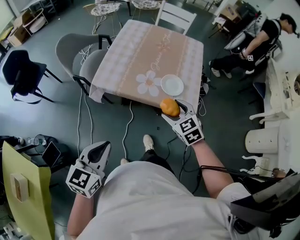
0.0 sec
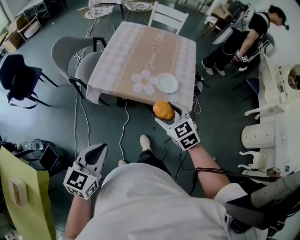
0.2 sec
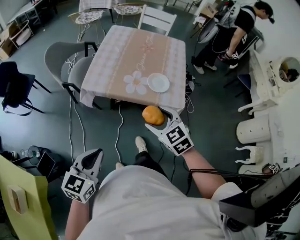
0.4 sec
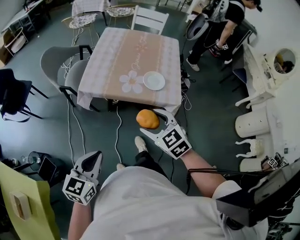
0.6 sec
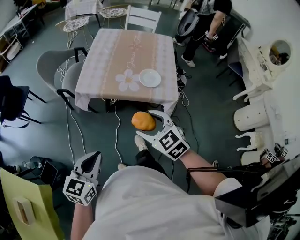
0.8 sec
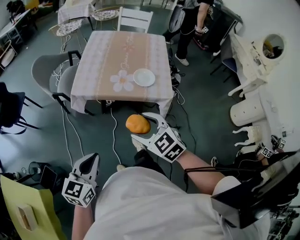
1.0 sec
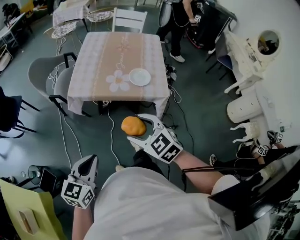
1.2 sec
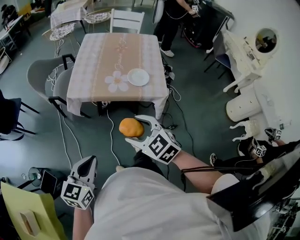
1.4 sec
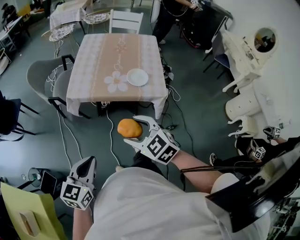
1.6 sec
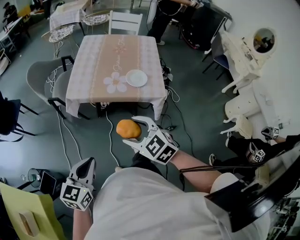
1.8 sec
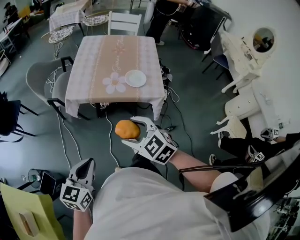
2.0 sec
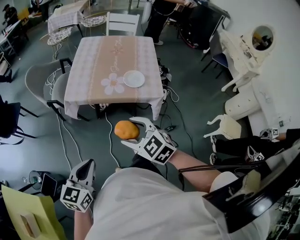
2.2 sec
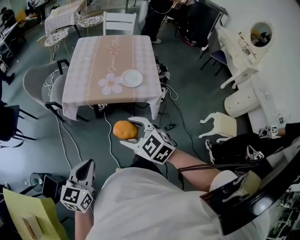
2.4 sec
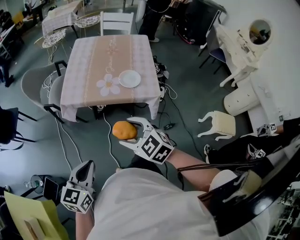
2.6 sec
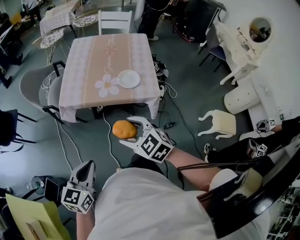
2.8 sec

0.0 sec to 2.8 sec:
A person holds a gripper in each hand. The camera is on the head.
0.0 sec to 1.4 sec: The left gripper is displaced backward by approximately 10 cm. The right gripper travels backward and to the left by approximately 20 cm.
1.4 sec to 2.8 sec: The grippers stay close to where they were, moving slightly.

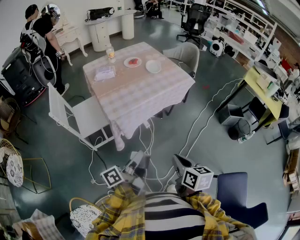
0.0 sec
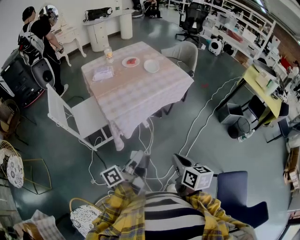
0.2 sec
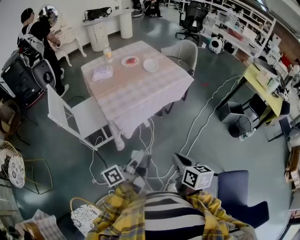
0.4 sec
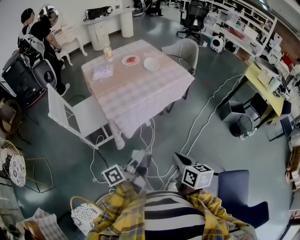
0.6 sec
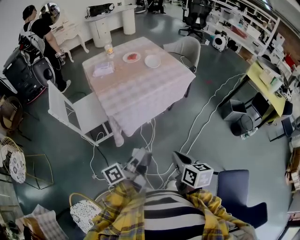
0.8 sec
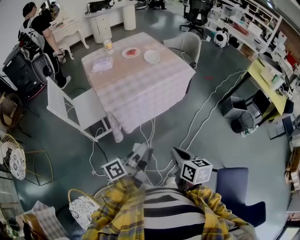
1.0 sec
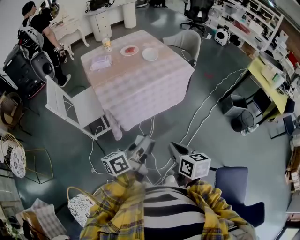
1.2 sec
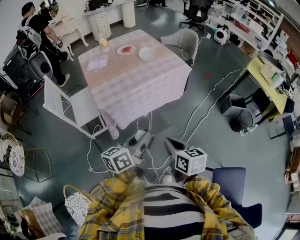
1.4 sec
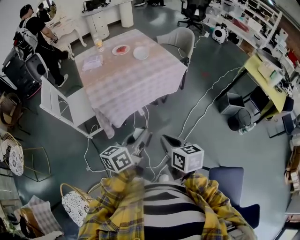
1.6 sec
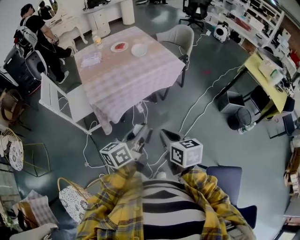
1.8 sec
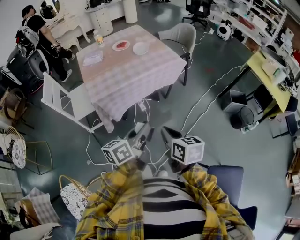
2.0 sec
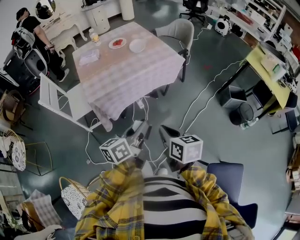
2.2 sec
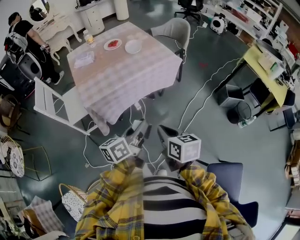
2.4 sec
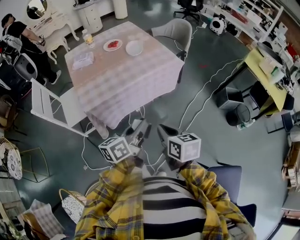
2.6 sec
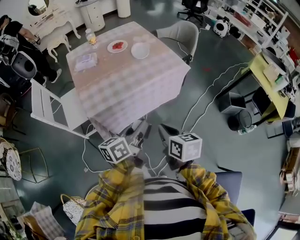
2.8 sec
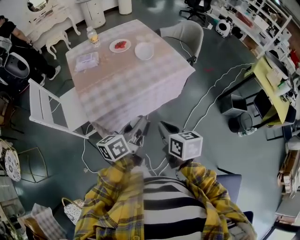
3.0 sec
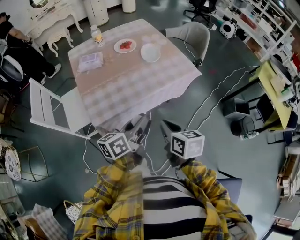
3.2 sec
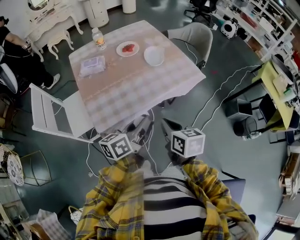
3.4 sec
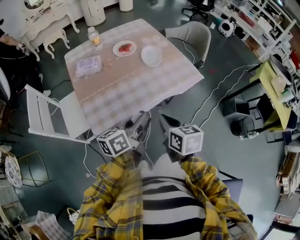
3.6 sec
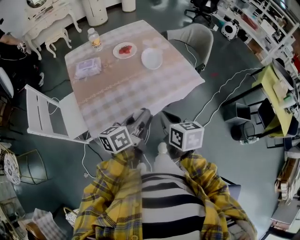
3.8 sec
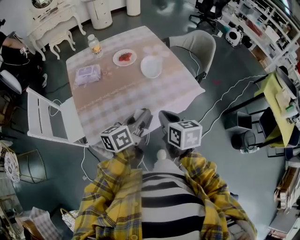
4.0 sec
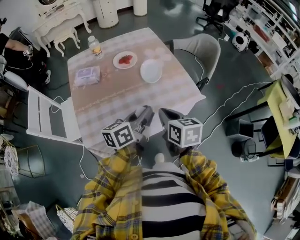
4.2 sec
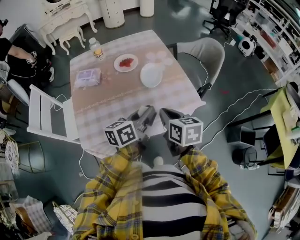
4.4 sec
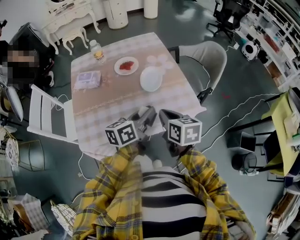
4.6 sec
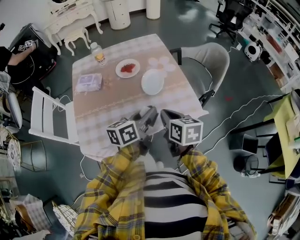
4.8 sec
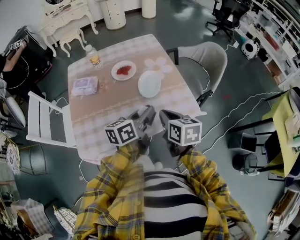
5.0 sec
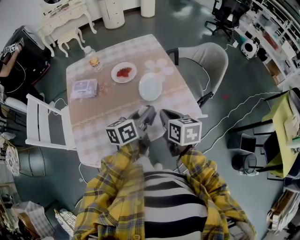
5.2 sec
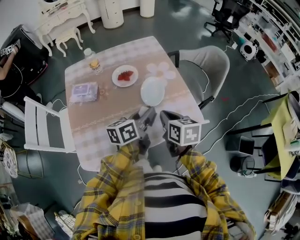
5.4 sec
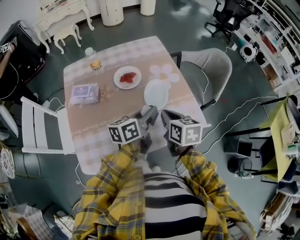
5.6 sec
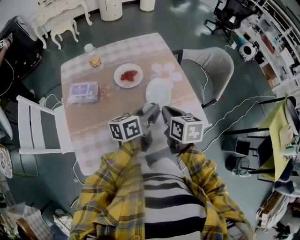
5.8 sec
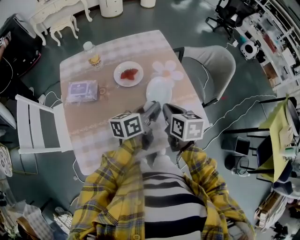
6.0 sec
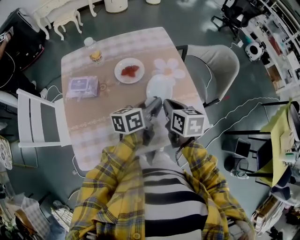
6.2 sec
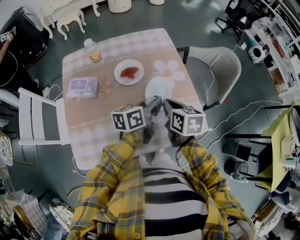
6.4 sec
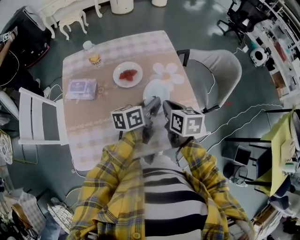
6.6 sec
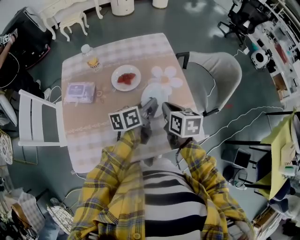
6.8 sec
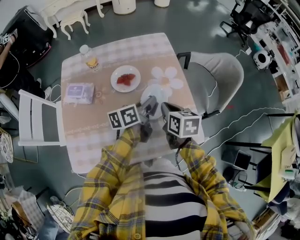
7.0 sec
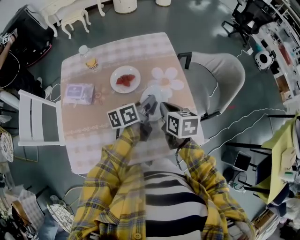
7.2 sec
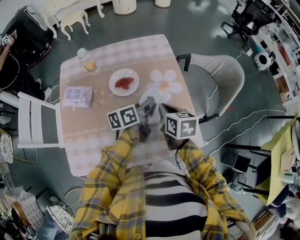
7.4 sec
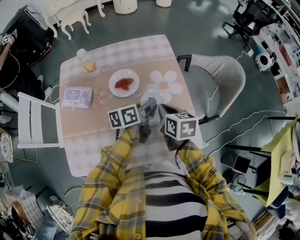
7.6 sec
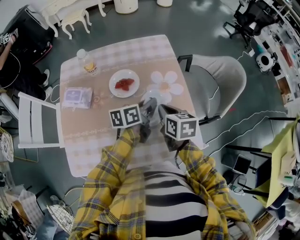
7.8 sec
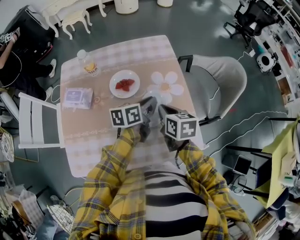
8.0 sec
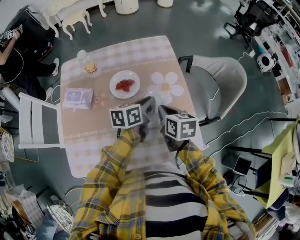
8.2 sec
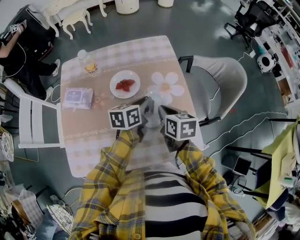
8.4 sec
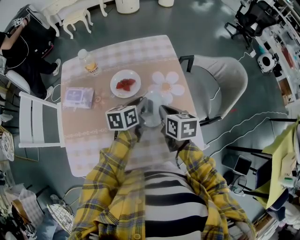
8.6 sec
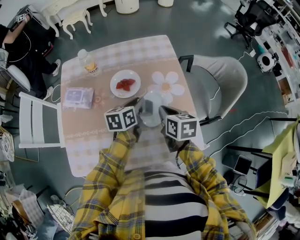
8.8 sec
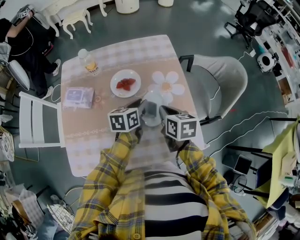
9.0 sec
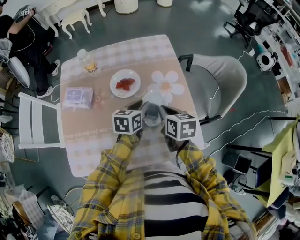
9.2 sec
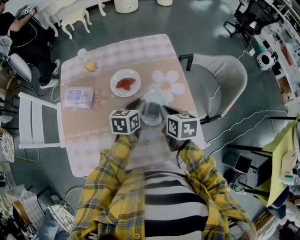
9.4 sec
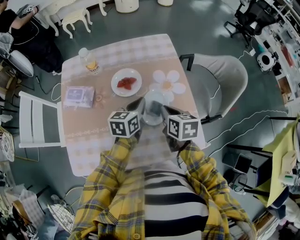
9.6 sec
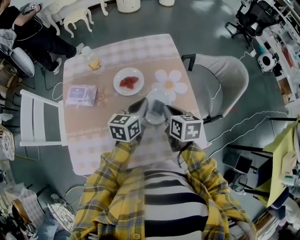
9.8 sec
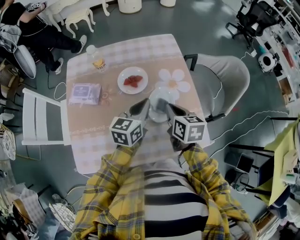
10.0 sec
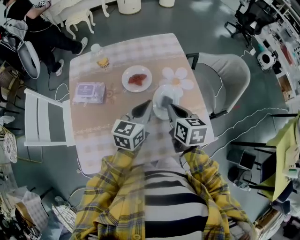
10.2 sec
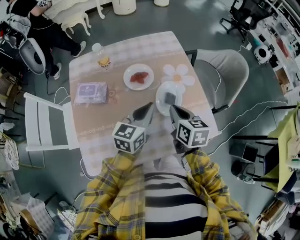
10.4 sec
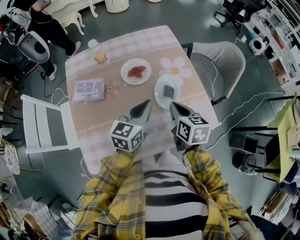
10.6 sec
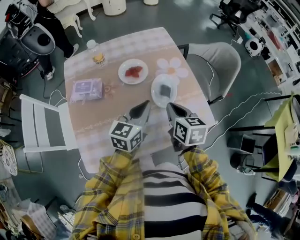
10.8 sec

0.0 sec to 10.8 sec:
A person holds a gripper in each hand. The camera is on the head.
0.0 sec to 1.6 sec: The left gripper heads to the right, covering roughly 15 cm, and turns by roughly 30 degrees, while the right gripper moves to the right, about 5 cm.
1.6 sec to 3.0 sec: The two grippers go approximately 15 cm forward.
3.0 sec to 4.6 sec: Both grippers travel together forward, roughly 25 cm.
4.6 sec to 6.2 sec: The two grippers go about 15 cm forward.
6.2 sec to 7.8 sec: The grippers both shift forward by some 10 cm.
7.8 sec to 9.2 sec: The left gripper moves some 5 cm, and turns by roughly 30 degrees.
9.2 sec to 10.8 sec: The right gripper moves backward, about 10 cm. The left gripper moves backward and upward, about 15 cm, turns by roughly 30 degrees, and closes.

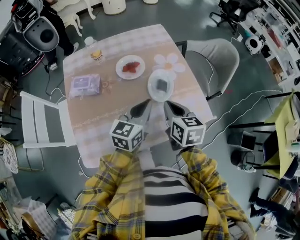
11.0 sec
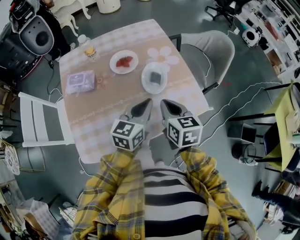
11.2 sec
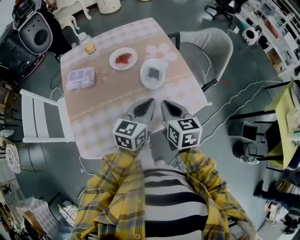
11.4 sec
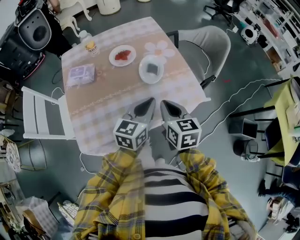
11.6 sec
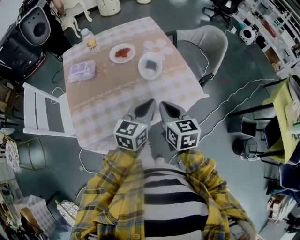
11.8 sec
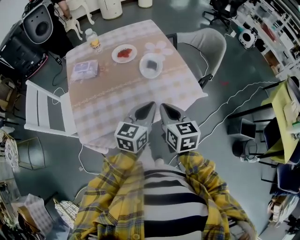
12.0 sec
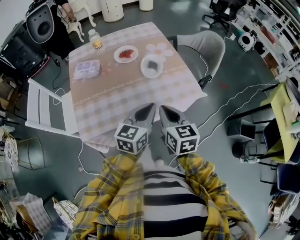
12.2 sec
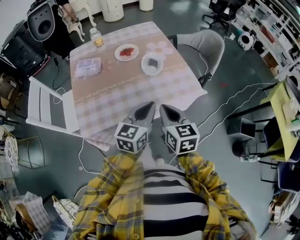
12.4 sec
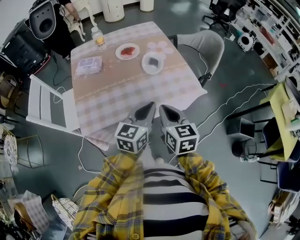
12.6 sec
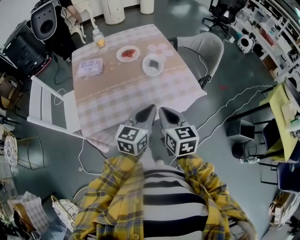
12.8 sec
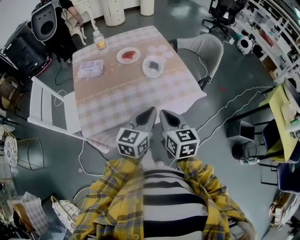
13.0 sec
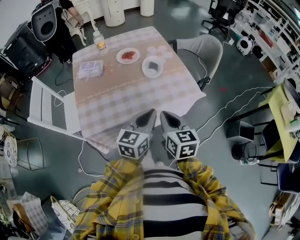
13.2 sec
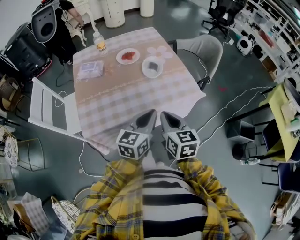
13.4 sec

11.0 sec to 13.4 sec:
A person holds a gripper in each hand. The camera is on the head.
11.0 sec to 12.2 sec: The left gripper heads backward and to the right, covering about 15 cm. The right gripper travels backward by roughly 15 cm.
12.2 sec to 13.4 sec: The grippers make only small movements.

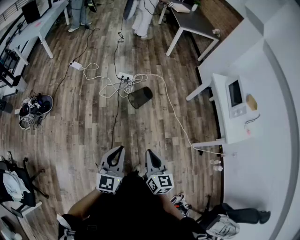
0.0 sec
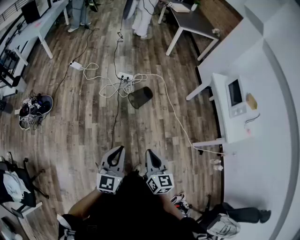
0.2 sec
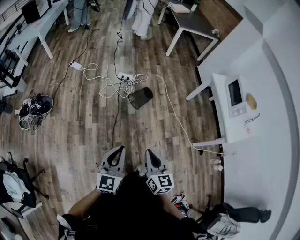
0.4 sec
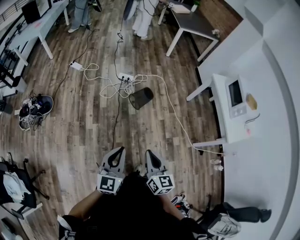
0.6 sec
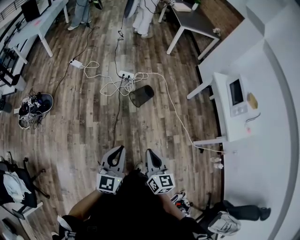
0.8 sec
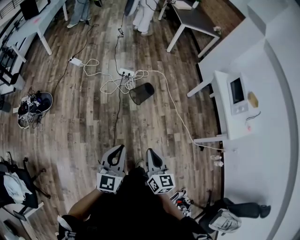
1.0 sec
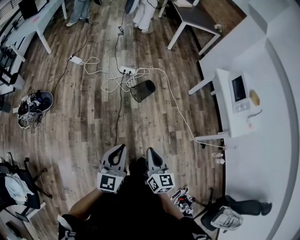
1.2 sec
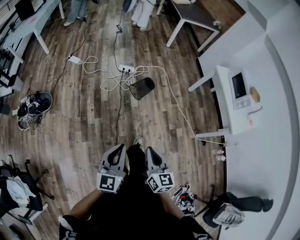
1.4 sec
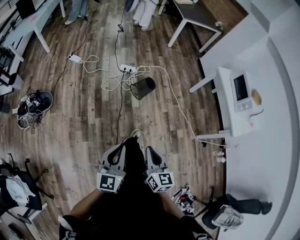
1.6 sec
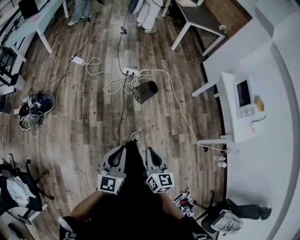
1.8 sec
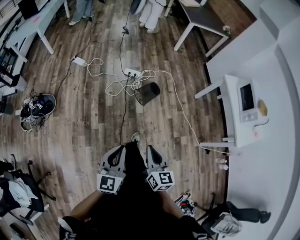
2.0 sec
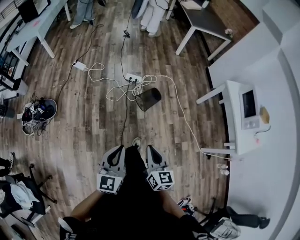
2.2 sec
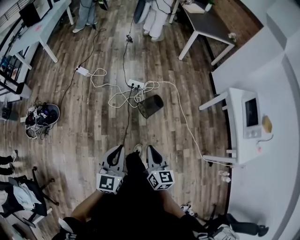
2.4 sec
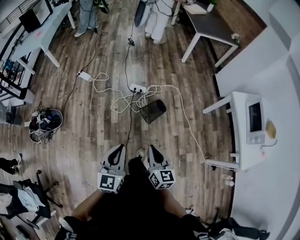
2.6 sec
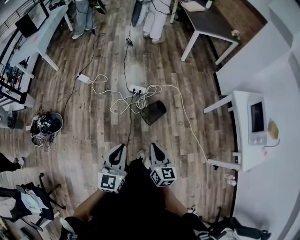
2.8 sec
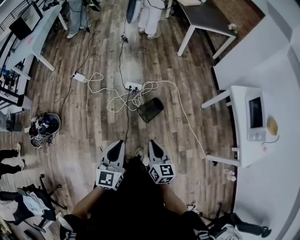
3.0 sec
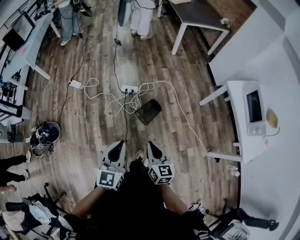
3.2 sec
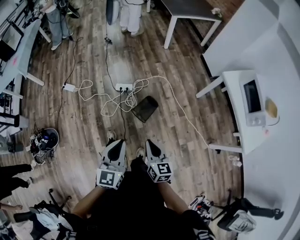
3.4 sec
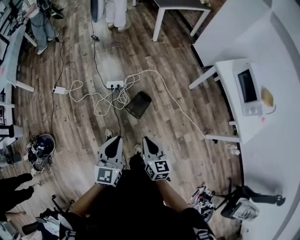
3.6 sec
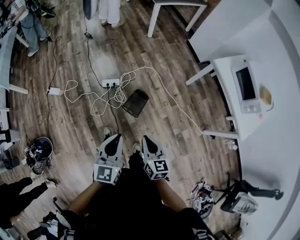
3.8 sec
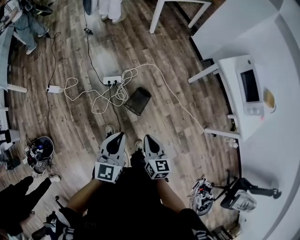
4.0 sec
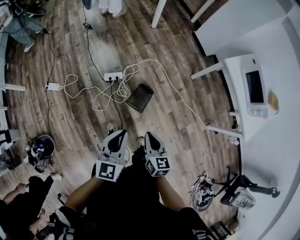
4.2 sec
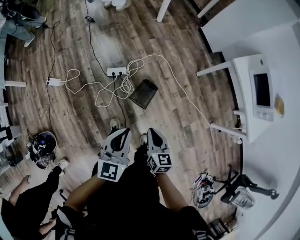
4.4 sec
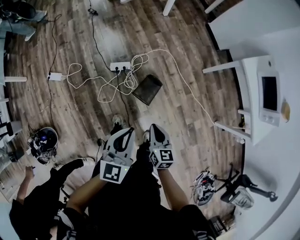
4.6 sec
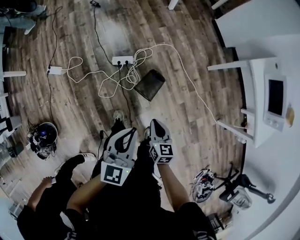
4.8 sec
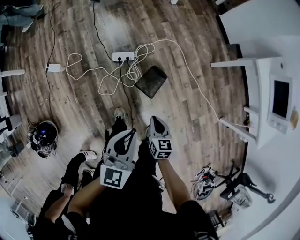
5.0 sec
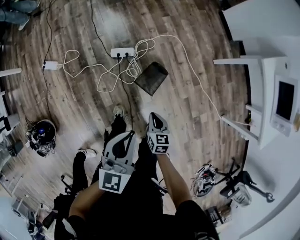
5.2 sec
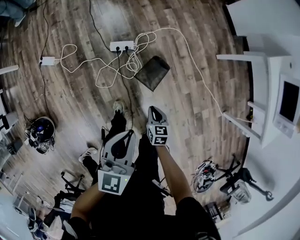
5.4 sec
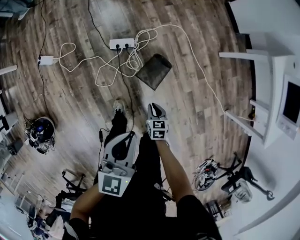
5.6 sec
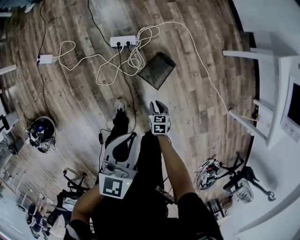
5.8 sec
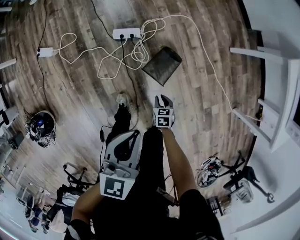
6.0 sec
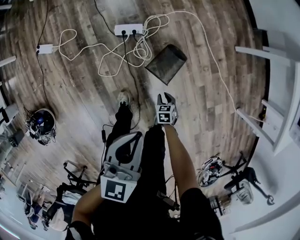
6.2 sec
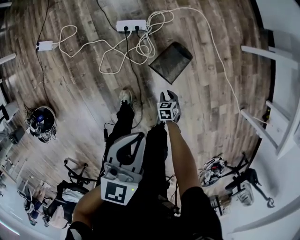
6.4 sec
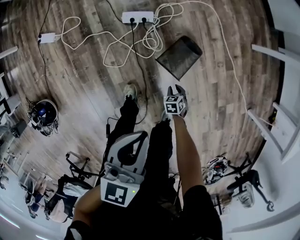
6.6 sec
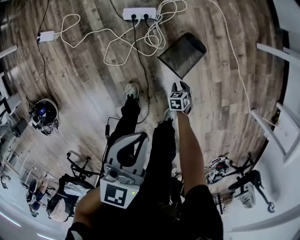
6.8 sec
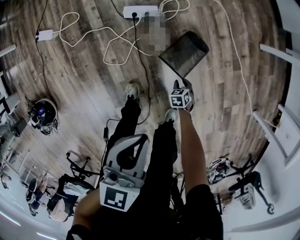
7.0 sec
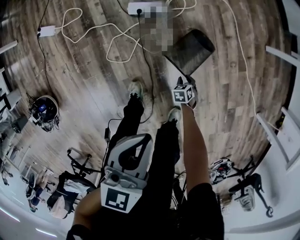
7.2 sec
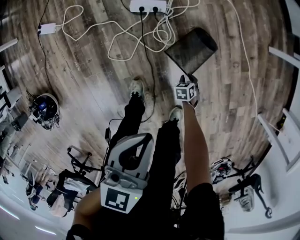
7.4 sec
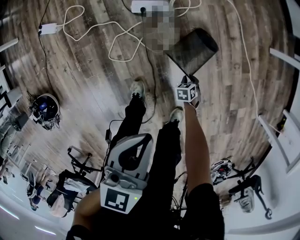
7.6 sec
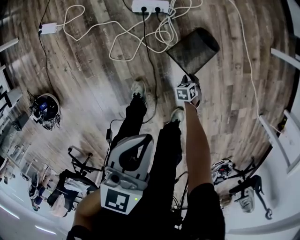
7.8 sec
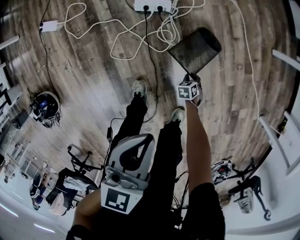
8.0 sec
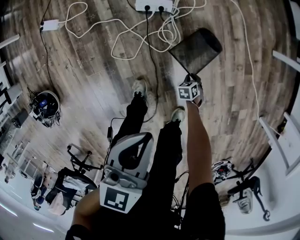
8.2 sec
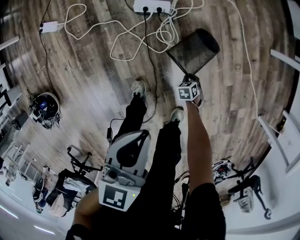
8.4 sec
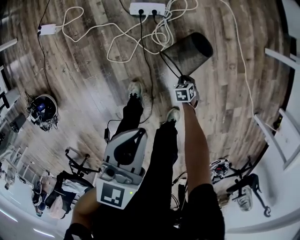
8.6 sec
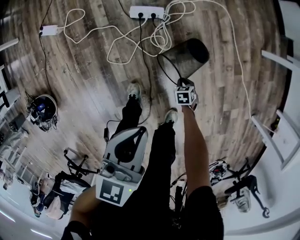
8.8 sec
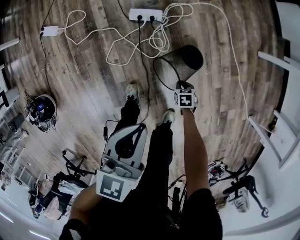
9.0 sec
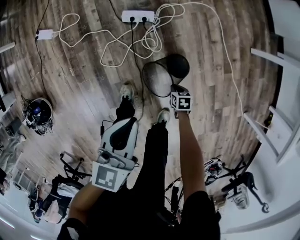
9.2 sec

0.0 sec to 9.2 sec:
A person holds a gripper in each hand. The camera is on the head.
0.0 sec to 1.6 sec: The grippers both shift to the left by some 10 cm.
1.6 sec to 3.0 sec: Both grippers travel together forward, some 30 cm.
3.0 sec to 4.6 sec: The left gripper heads forward, covering approximately 25 cm, and swivels approximately 20 degrees, while the right gripper travels forward and downward by approximately 25 cm, and swivels some 20 degrees.
4.6 sec to 6.2 sec: The right gripper moves downward, about 50 cm, and points its fingers about 40 degrees further downward, while the left gripper shifts approximately 20 cm downward.
6.2 sec to 7.6 sec: The left gripper shifts some 10 cm downward. Meanwhile the right gripper moves downward, about 20 cm.
7.6 sec to 9.2 sec: The right gripper shifts some 10 cm upward, and rotates about 20 degrees.
